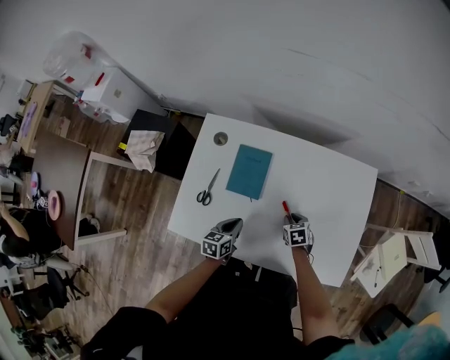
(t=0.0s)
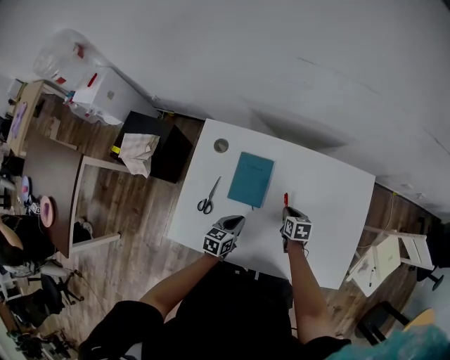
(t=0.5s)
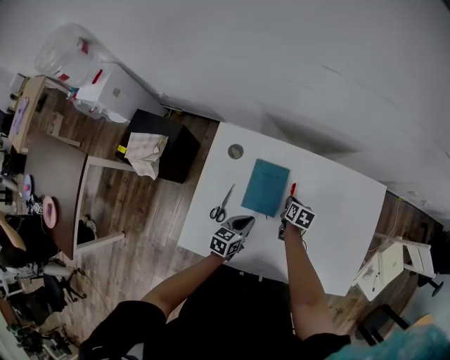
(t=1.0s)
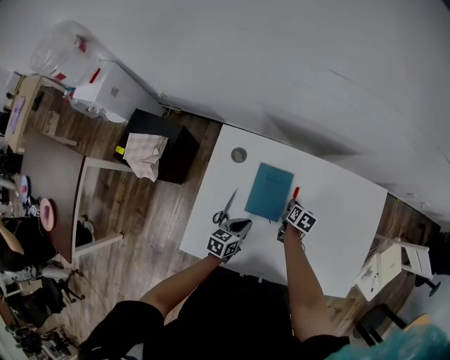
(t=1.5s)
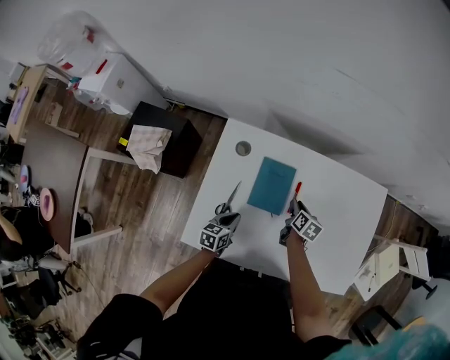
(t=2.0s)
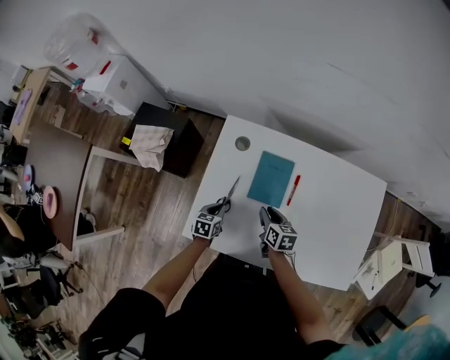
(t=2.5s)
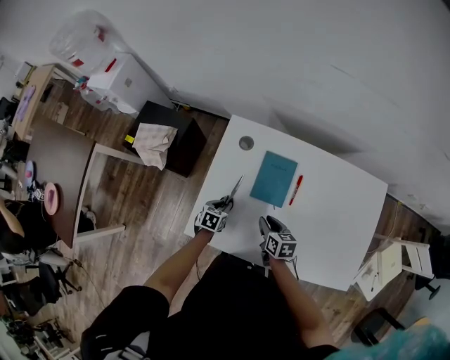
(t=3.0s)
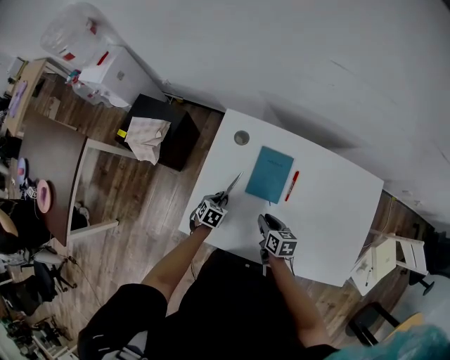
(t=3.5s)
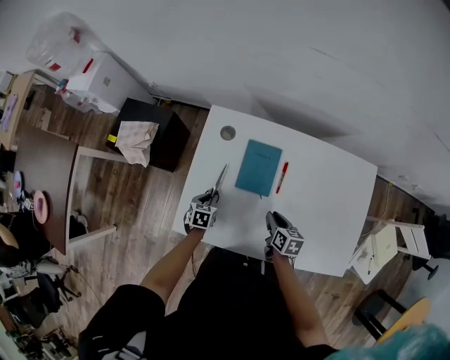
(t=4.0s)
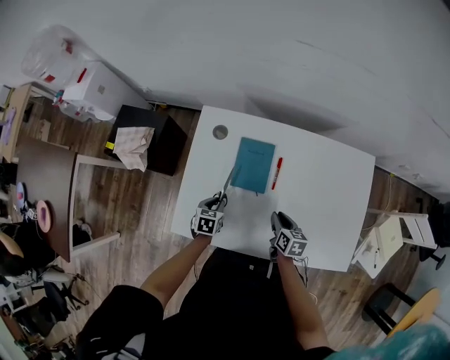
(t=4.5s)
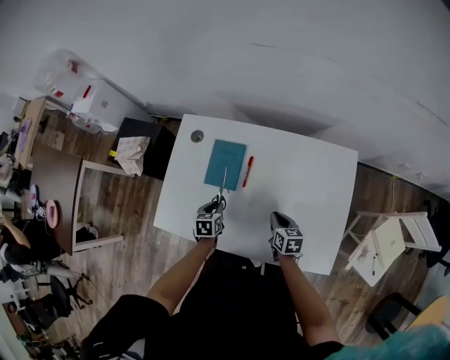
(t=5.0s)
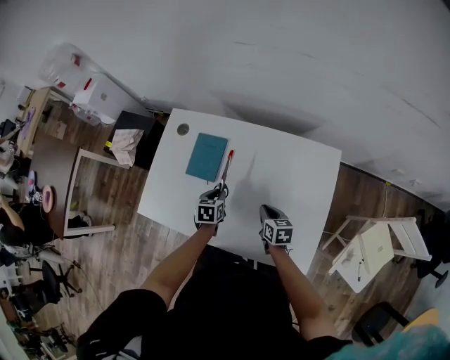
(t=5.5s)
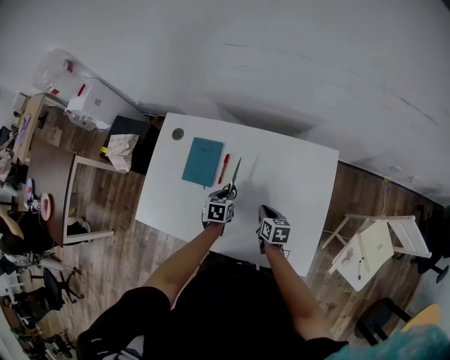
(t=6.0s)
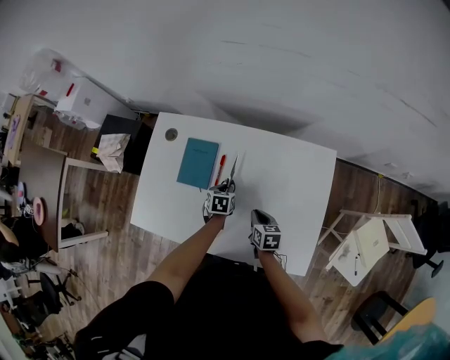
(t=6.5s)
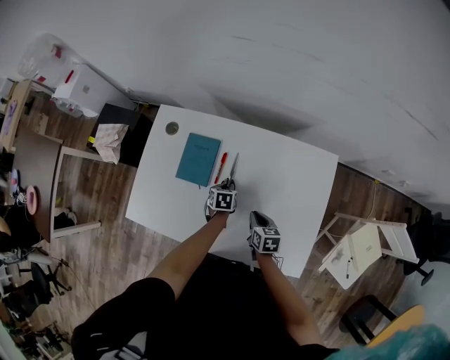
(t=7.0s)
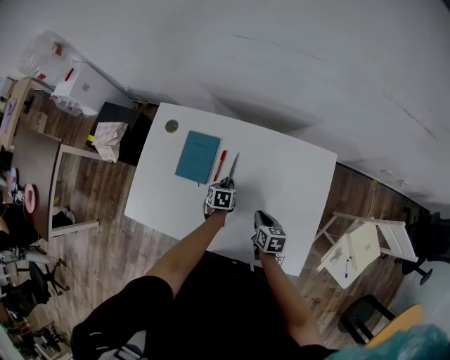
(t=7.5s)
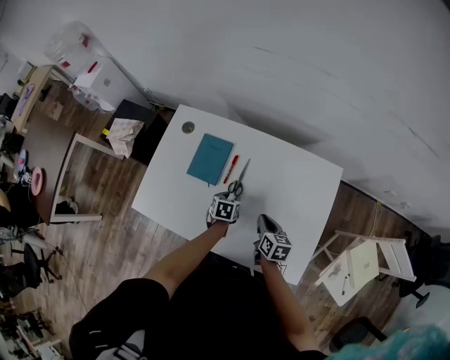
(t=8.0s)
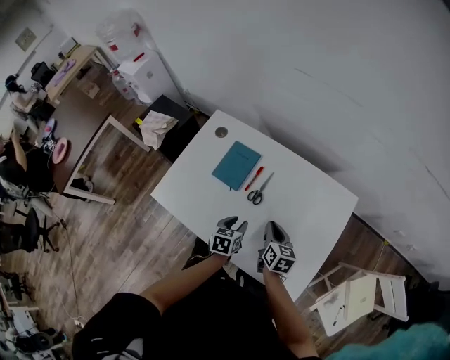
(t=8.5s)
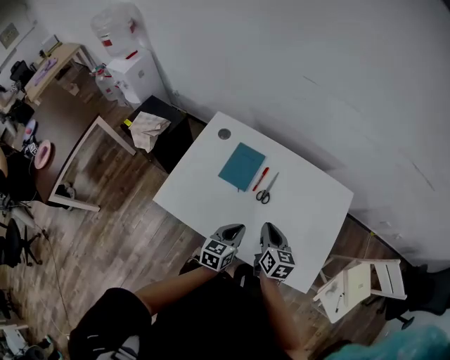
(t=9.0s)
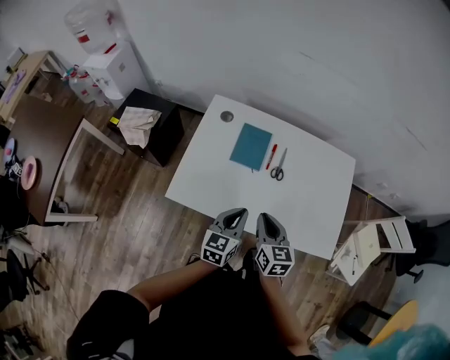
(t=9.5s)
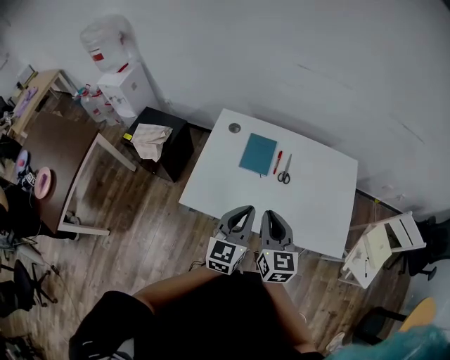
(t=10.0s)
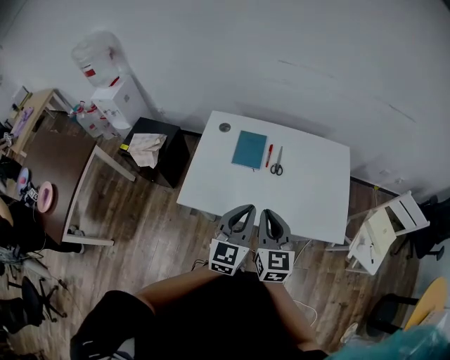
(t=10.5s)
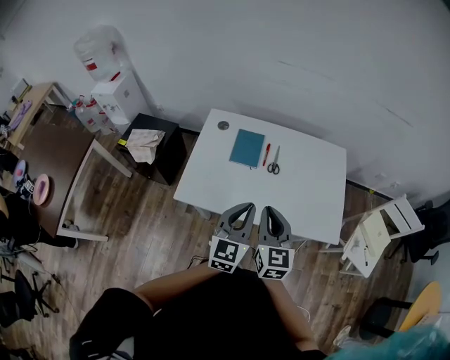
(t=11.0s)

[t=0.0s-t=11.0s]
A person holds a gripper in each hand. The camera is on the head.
t=0.0s to t=2.0s: The left gripper is displaced to the left by roughly 15 cm. The right gripper is displaced to the left and forward by some 15 cm, and twists some 40 degrees clockwise, seen from behind.
t=2.0s to t=3.5s: The left gripper moves to the left and downward, approximately 10 cm, and swivels some 30 degrees, while the right gripper goes roughly 15 cm backward and to the left, and changes its angle by some 30 degrees.
t=3.5s to t=5.5s: Both grippers move to the right, roughly 30 cm. The left gripper turns by roughly 20 degrees.
t=5.5s to t=7.5s: The left gripper moves downward, about 10 cm.
t=7.5s to t=9.0s: The right gripper goes about 20 cm upward and to the left, and turns by some 20 degrees; the left gripper is displaced upward and backward by roughly 25 cm, and angles its fingers upward, by some 40 degrees.
t=9.0s to t=11.0s: The right gripper travels backward, upward and to the left by about 25 cm, and swivels about 30 degrees. The left gripper goes roughly 25 cm upward, backward and to the left, and turns by some 30 degrees.

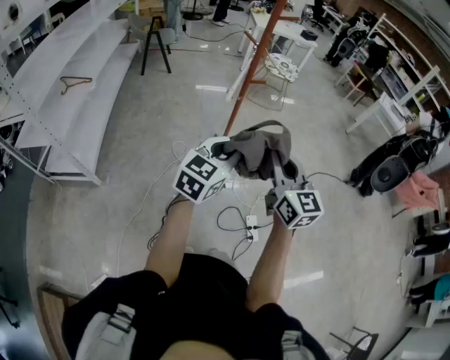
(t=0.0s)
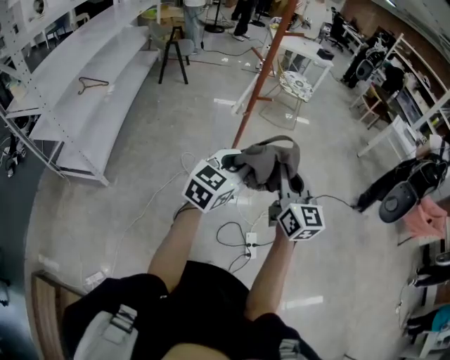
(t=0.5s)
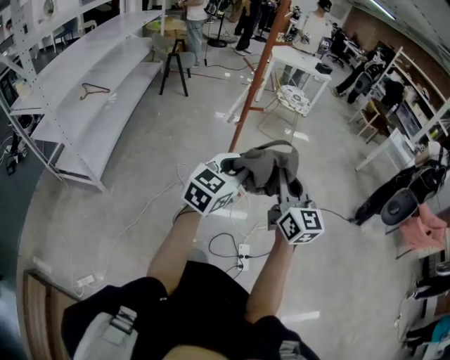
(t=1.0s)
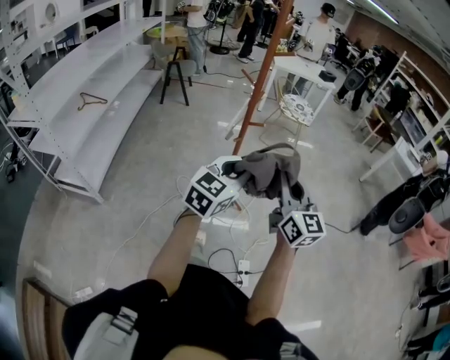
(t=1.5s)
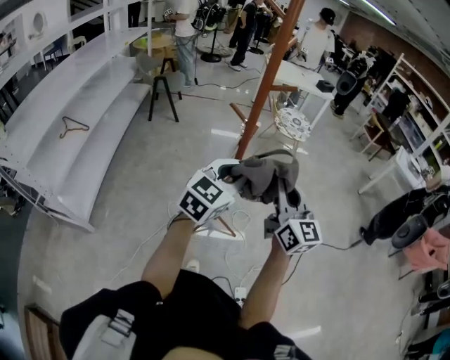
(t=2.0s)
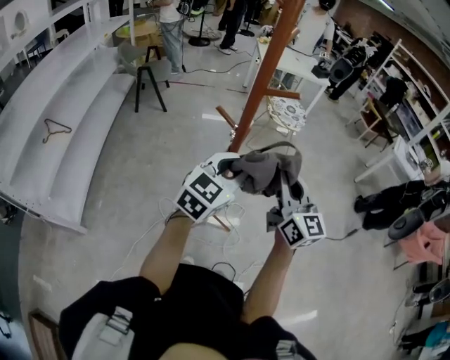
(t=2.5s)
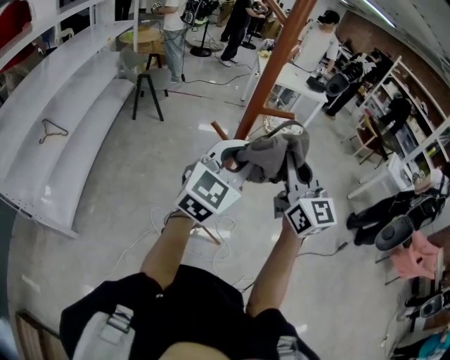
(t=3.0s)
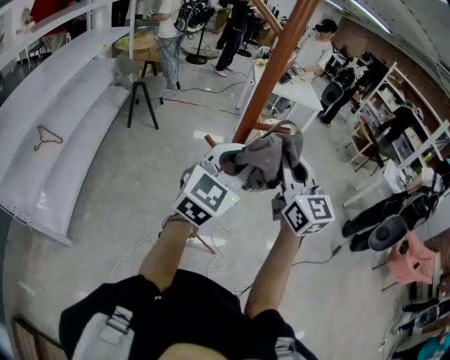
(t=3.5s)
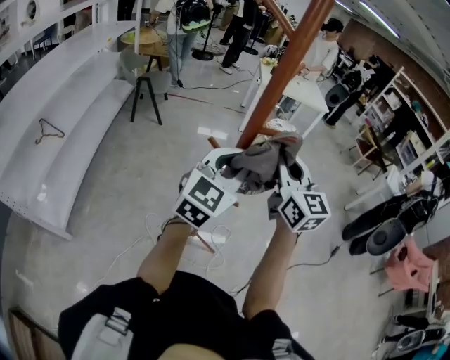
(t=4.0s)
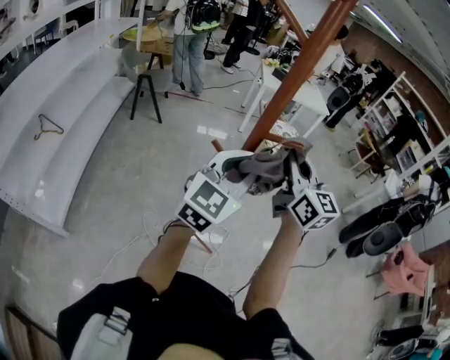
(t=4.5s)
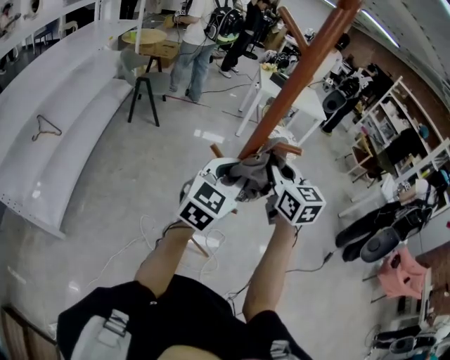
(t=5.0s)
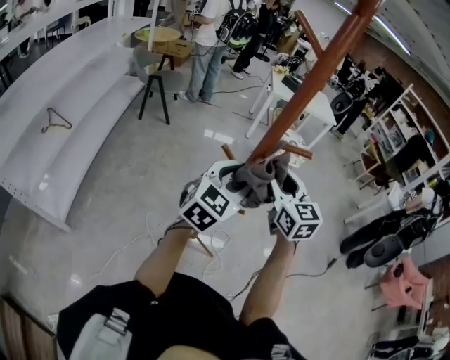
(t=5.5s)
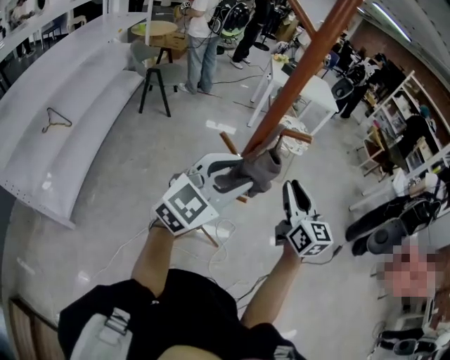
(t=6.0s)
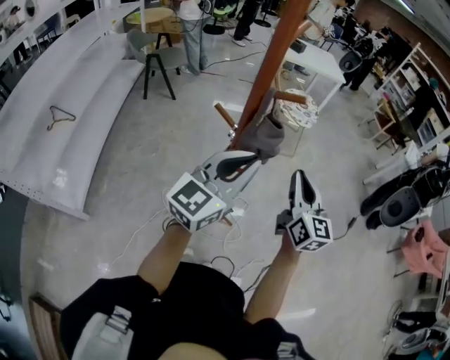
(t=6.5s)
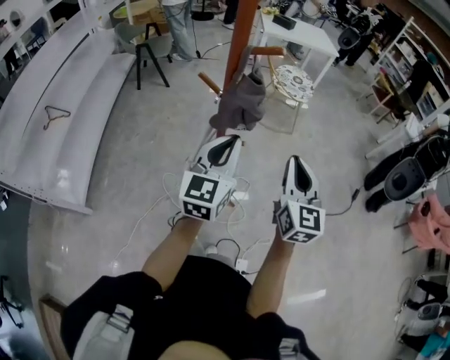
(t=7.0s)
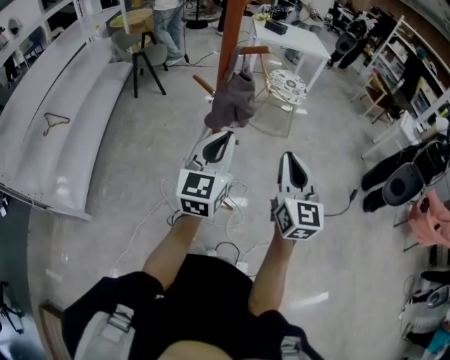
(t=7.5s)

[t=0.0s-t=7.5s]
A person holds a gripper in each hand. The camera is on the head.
t=0.0s to t=2.0s: Both grippers travel together forward, roughly 30 cm.
t=2.0s to t=4.0s: The right gripper moves forward, roughly 25 cm. Meanwhile the left gripper moves forward and upward, roughly 20 cm.
t=4.0s to t=5.5s: The two grippers go roughly 5 cm downward. The right gripper opens. Meanwhile the left gripper opens up.
t=5.5s to t=7.5s: The left gripper heads backward, covering some 10 cm, goes upward and returns, roughly 5 cm each way, changes its angle by about 20 degrees, and closes its fingers. Meanwhile the right gripper travels backward and to the right by approximately 20 cm, changes its angle by about 20 degrees, and closes its fingers.

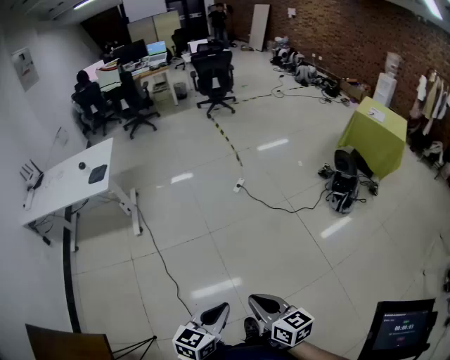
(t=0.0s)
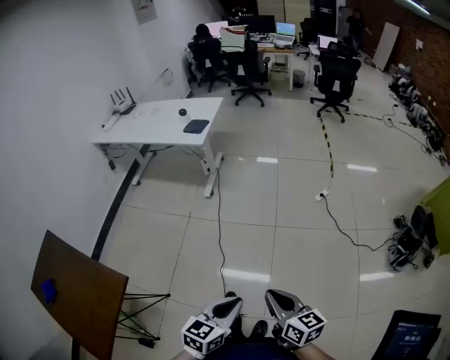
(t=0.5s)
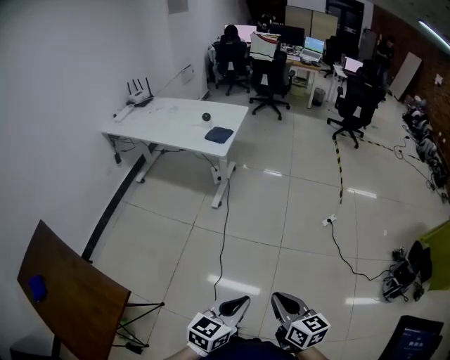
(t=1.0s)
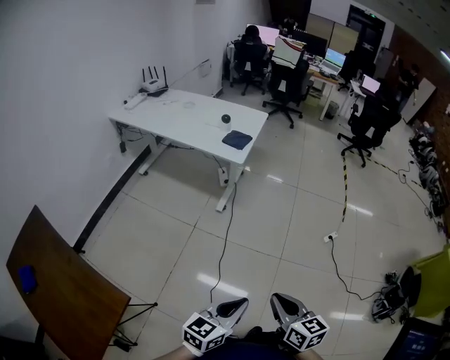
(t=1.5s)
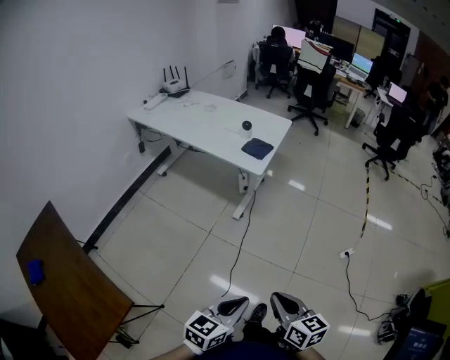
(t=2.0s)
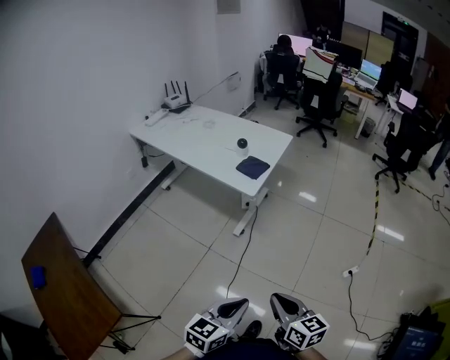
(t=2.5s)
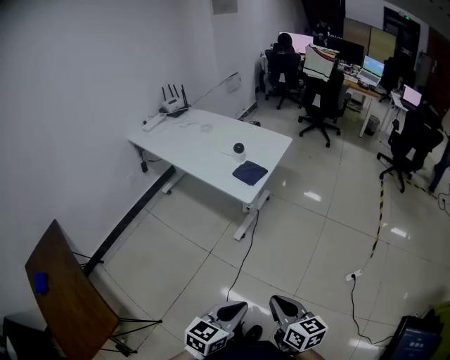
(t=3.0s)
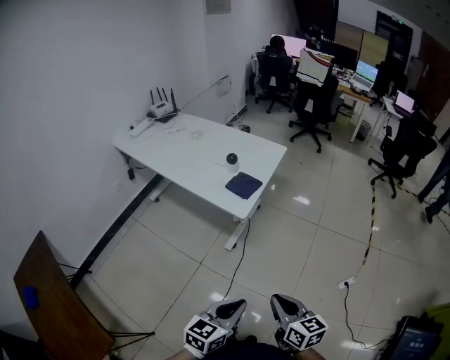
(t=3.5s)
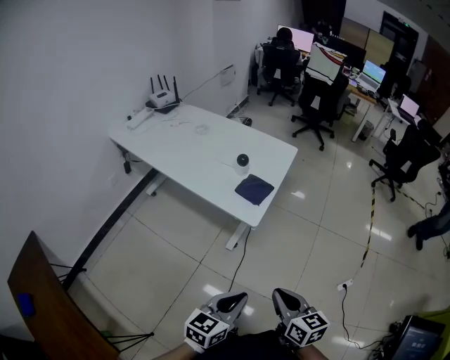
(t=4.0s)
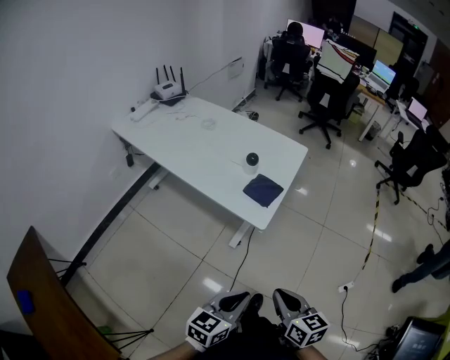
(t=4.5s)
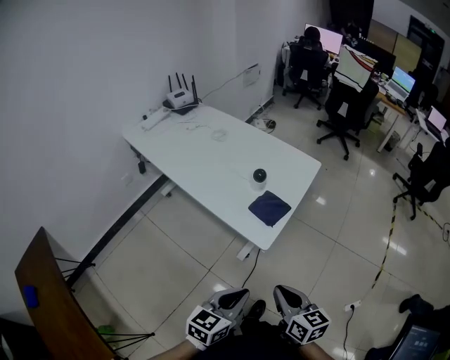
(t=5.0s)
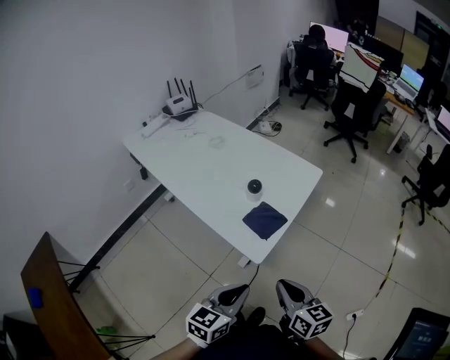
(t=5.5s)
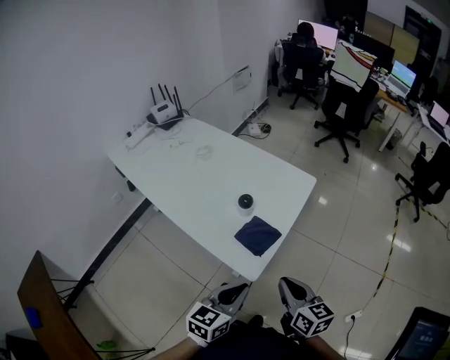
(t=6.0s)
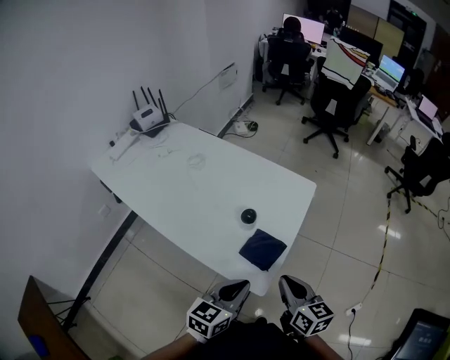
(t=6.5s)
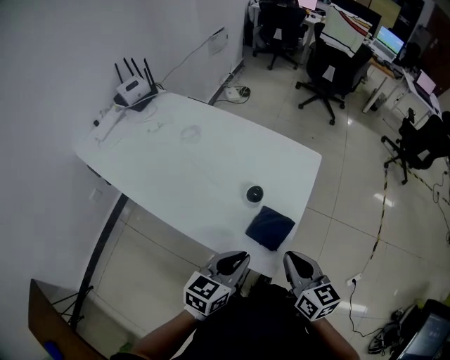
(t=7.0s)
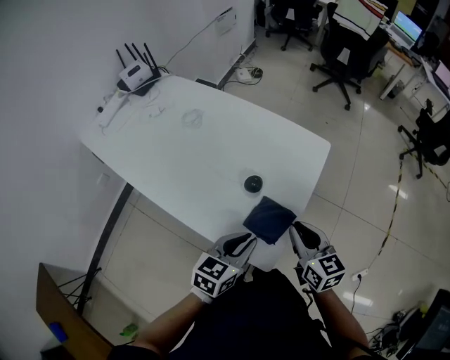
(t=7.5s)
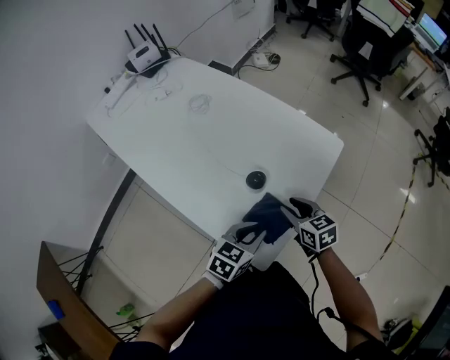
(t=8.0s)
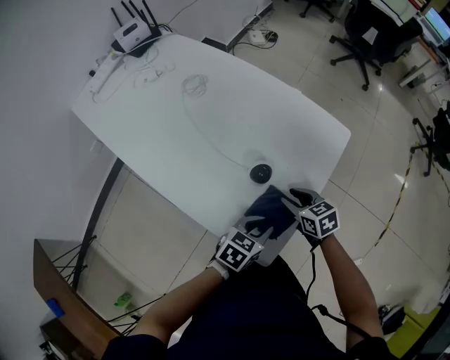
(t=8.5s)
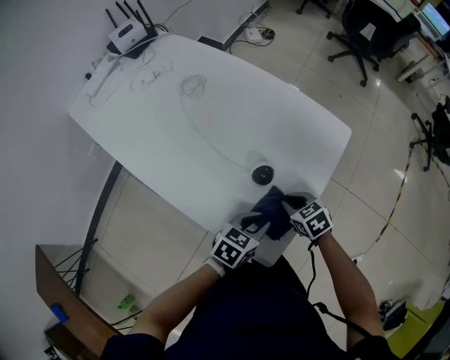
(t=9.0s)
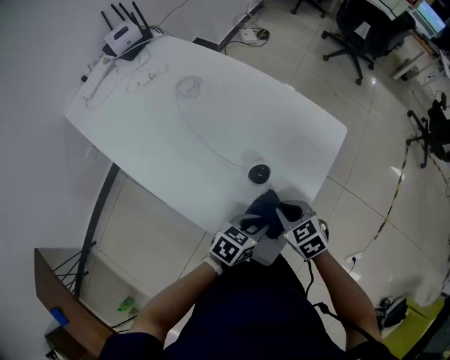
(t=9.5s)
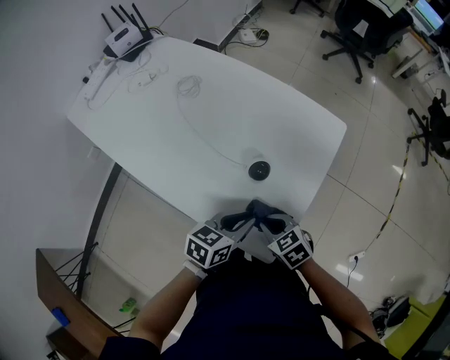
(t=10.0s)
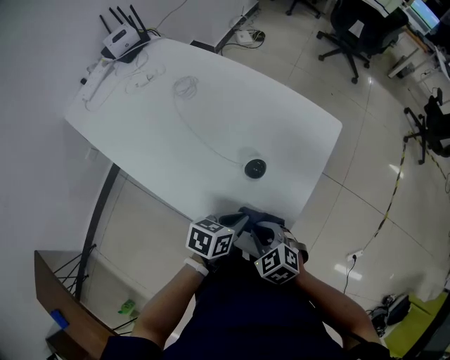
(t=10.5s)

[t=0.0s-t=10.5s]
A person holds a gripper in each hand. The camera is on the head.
t=0.0s to t=2.0s: The left gripper changes place by about 40 cm, and turns by roughly 30 degrees. Meanwhile the right gripper ends up about 40 cm from where it was, and swivels roughly 30 degrees.
t=2.0s to t=4.0s: The two grippers go some 30 cm forward.
t=4.0s to t=6.5s: The two grippers go approximately 35 cm forward.
t=6.5s to t=8.5s: Both grippers move downward and forward, some 25 cm. The left gripper changes its angle by some 20 degrees. The right gripper rotates about 40 degrees, and opens up.
t=8.5s to t=10.5s: The left gripper goes approximately 5 cm to the left, while the right gripper heads backward and to the left, covering approximately 15 cm, changes its angle by roughly 30 degrees, and closes its fingers.
